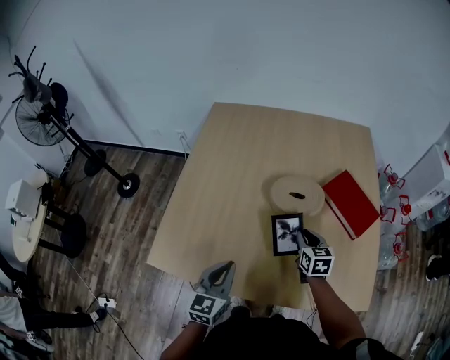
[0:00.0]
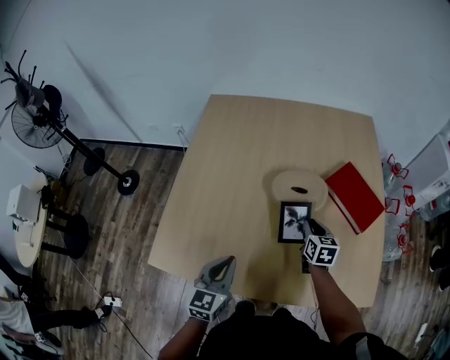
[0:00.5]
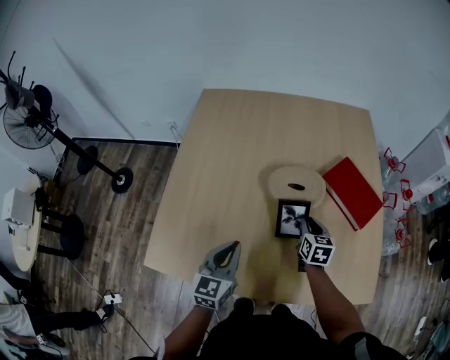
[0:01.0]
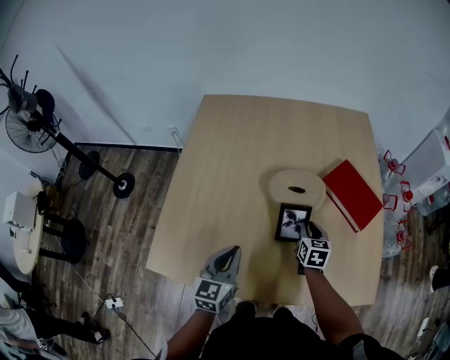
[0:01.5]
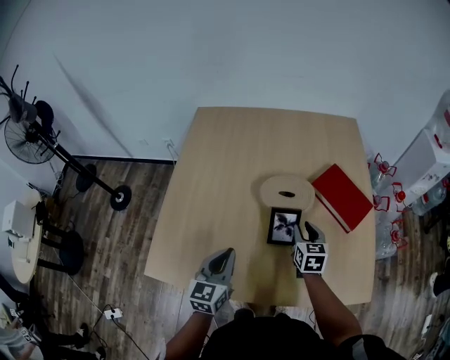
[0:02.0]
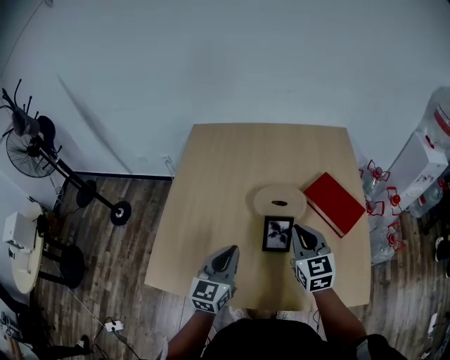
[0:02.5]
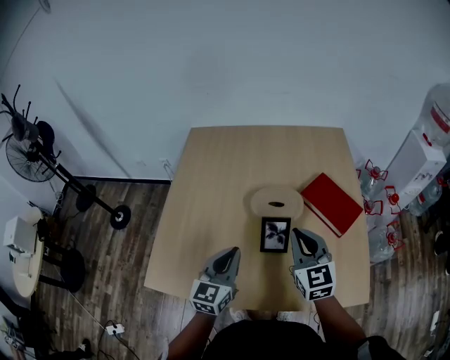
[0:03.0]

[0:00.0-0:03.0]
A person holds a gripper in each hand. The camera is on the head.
0:00.0 to 0:01.5: The right gripper ends up about 5 cm from where it was; the left gripper is displaced forward by some 5 cm.
0:01.5 to 0:03.0: The right gripper goes approximately 25 cm upward, and turns by roughly 30 degrees, while the left gripper moves upward and to the right, approximately 10 cm.

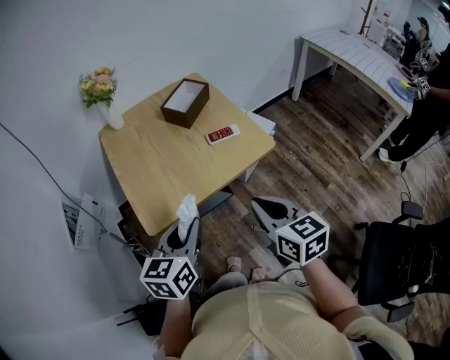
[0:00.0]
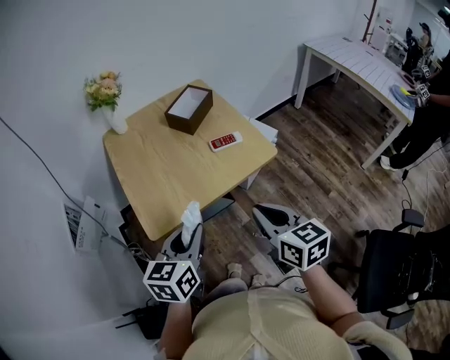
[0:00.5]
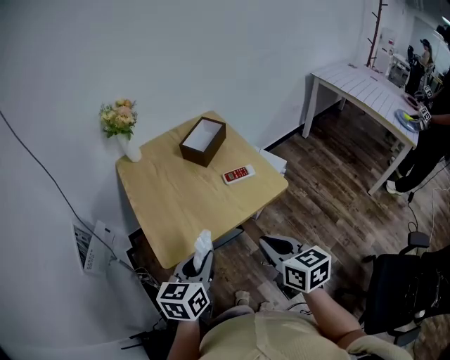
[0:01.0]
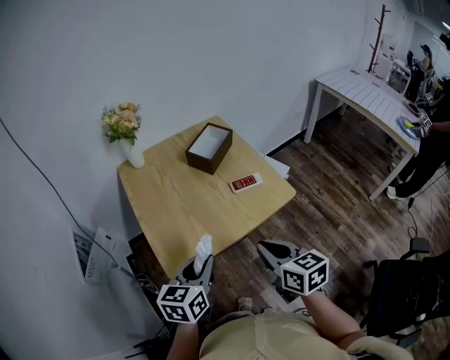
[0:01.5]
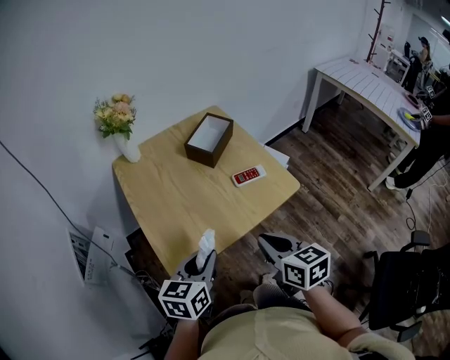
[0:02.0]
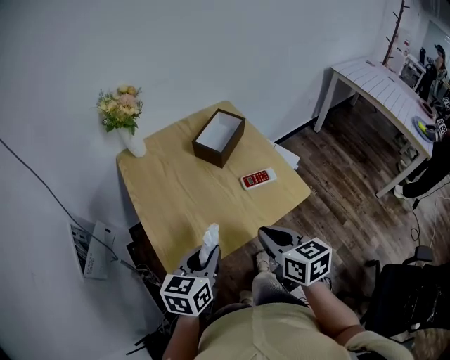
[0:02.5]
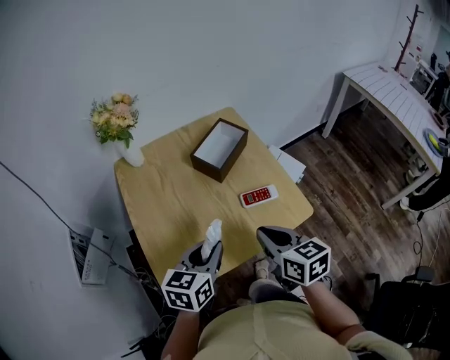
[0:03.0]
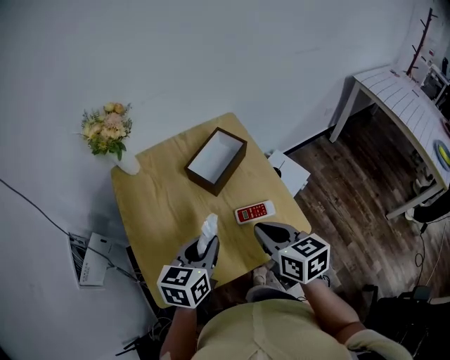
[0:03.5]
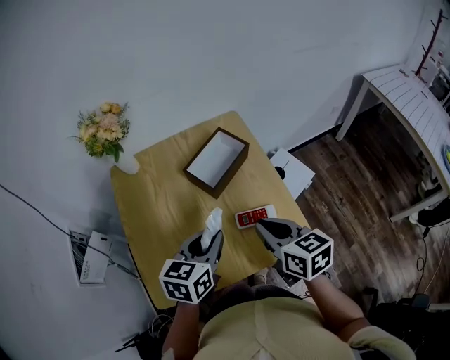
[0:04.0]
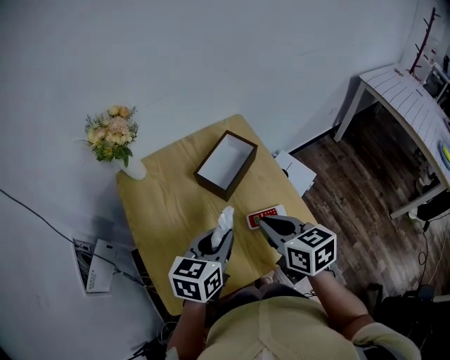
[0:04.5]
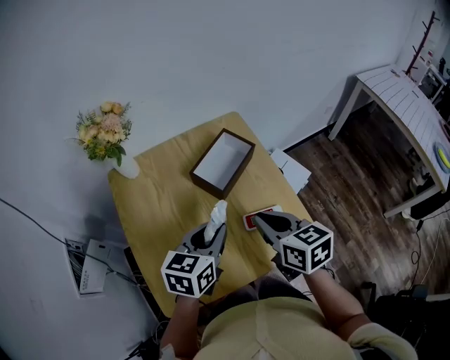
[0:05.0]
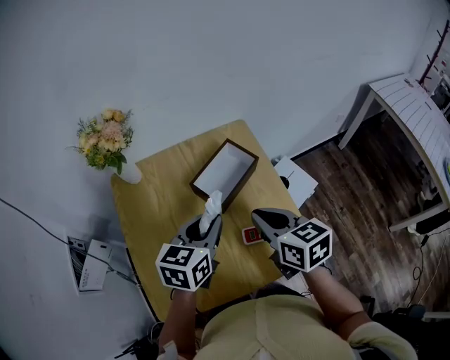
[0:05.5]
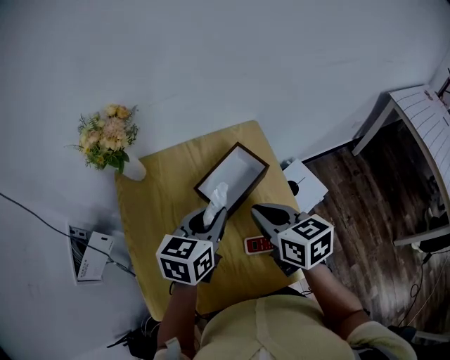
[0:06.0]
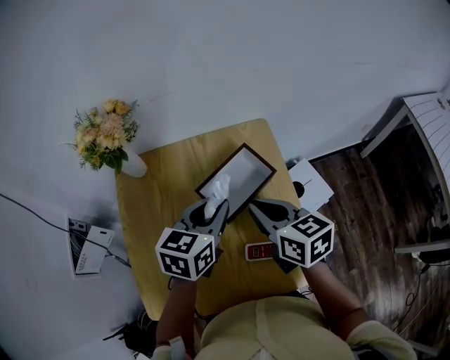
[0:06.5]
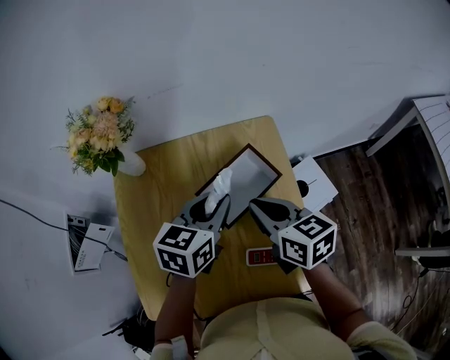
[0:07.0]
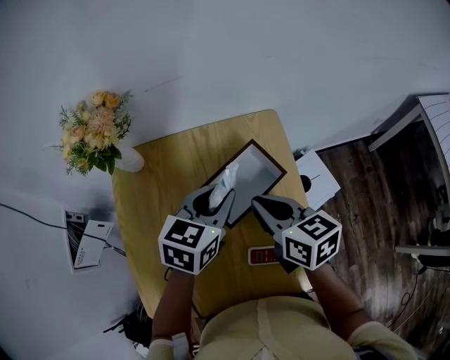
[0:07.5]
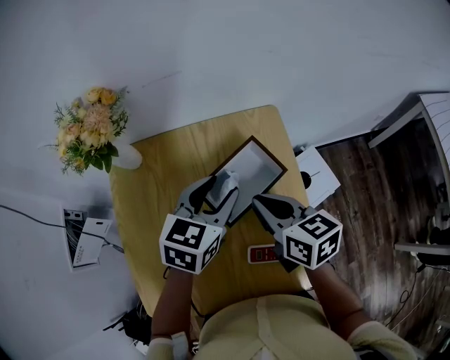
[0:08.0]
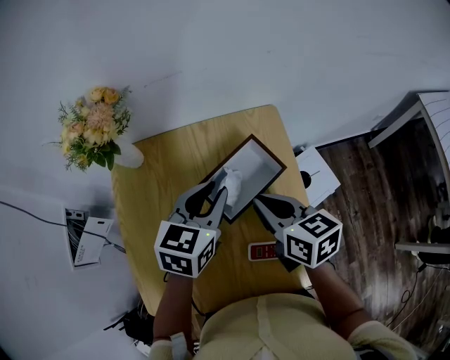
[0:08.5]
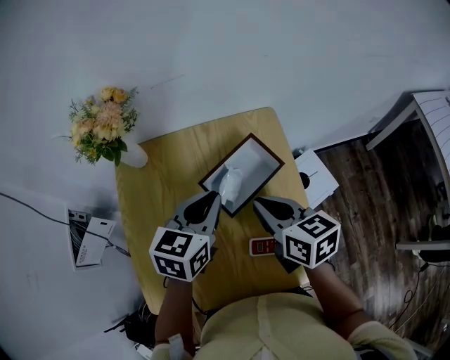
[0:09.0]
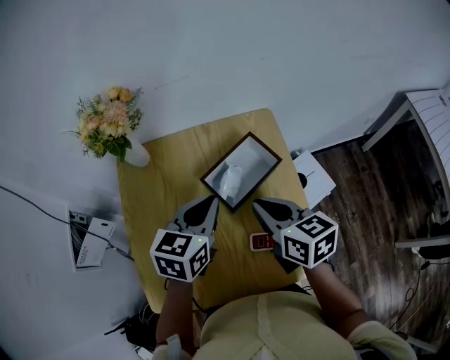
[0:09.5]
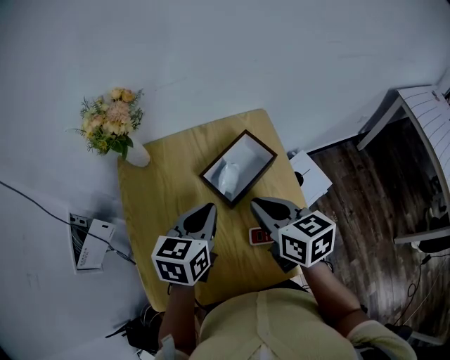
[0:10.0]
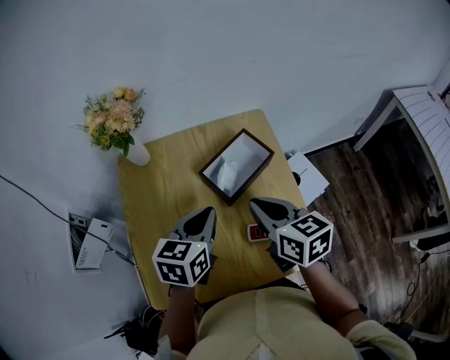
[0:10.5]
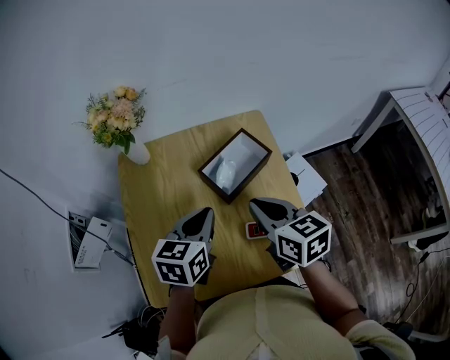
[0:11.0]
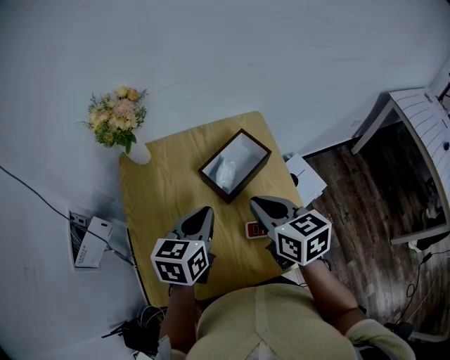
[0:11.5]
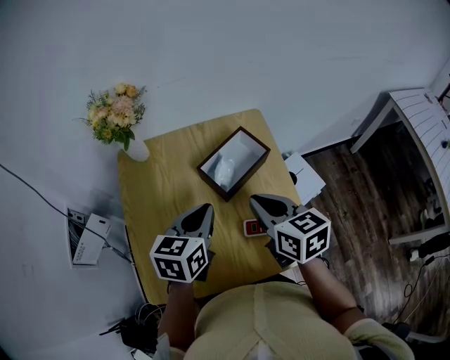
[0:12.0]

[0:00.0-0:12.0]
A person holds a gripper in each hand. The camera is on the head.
0:00.0 to 0:02.0: The left gripper goes about 5 cm forward; the right gripper moves forward and to the left, approximately 10 cm.
0:02.0 to 0:04.0: The right gripper heads forward, covering roughly 20 cm, while the left gripper heads forward and to the right, covering some 20 cm.
0:04.0 to 0:06.0: The grippers both shift forward by approximately 15 cm.
0:06.0 to 0:08.0: The two grippers go roughly 5 cm forward. The left gripper opens.
0:08.0 to 0:10.0: The right gripper heads backward, covering some 5 cm, while the left gripper travels backward and to the left by some 10 cm, and closes.
0:10.0 to 0:12.0: The grippers move only a little.

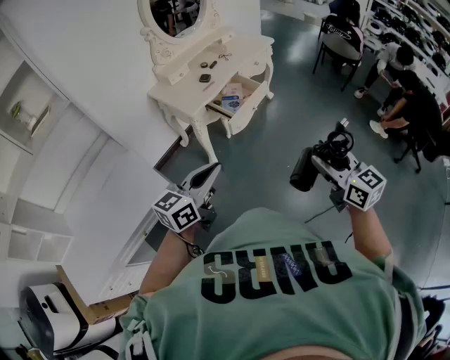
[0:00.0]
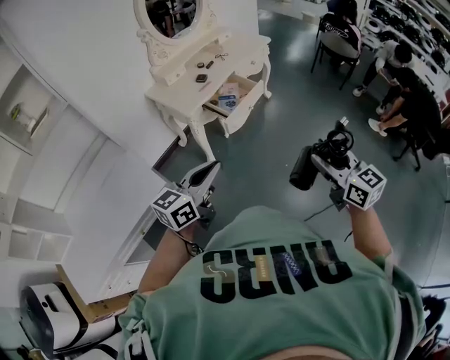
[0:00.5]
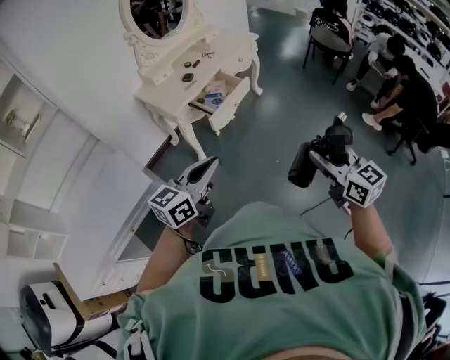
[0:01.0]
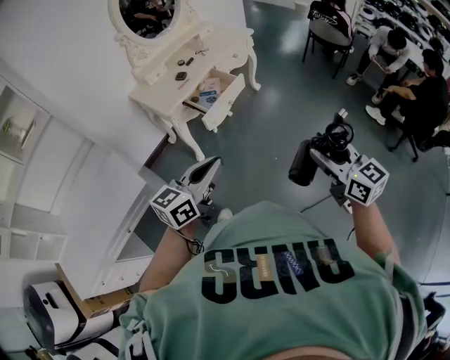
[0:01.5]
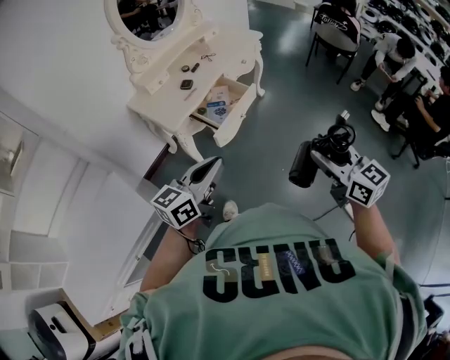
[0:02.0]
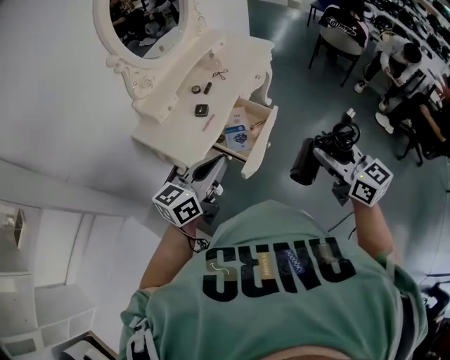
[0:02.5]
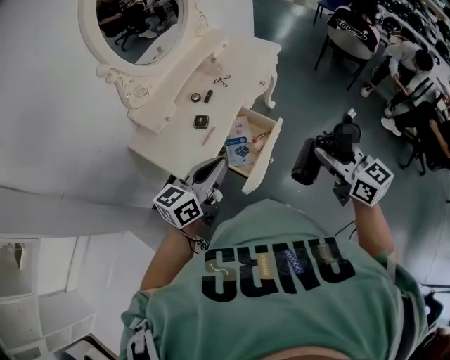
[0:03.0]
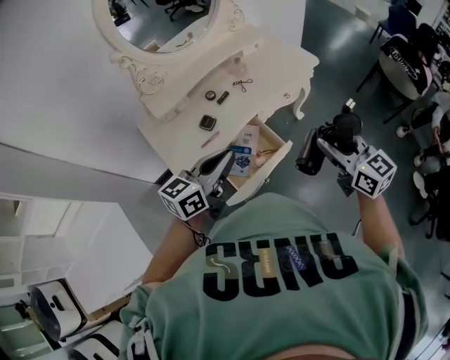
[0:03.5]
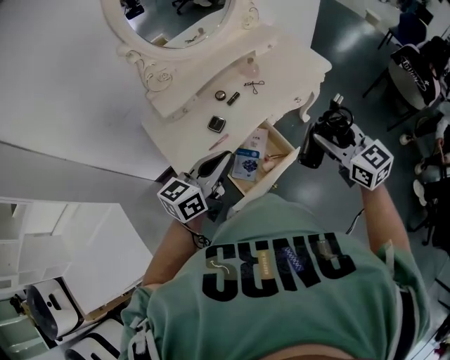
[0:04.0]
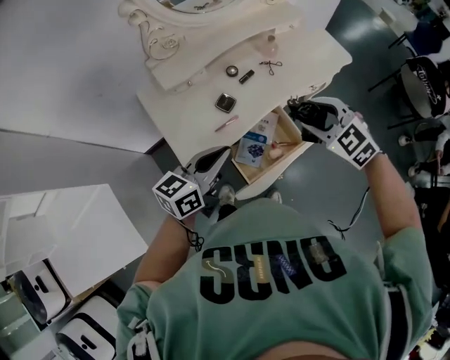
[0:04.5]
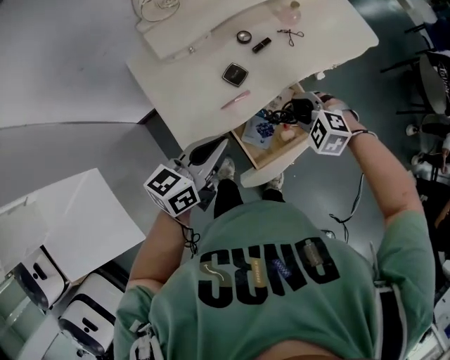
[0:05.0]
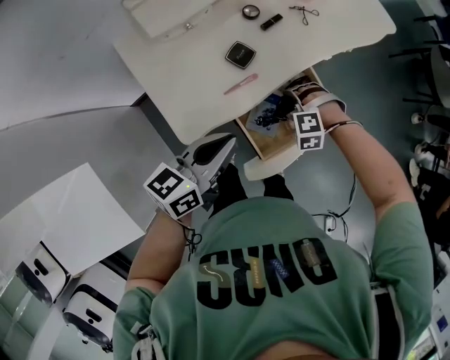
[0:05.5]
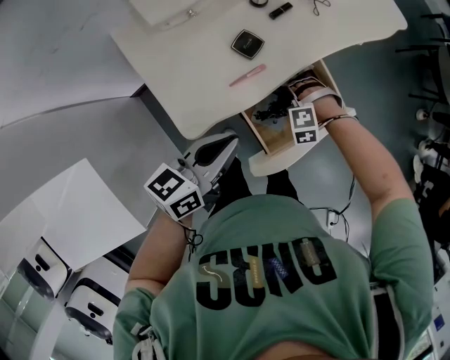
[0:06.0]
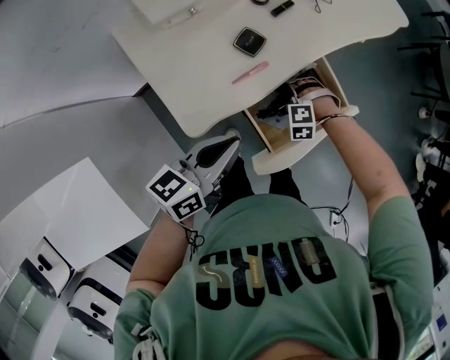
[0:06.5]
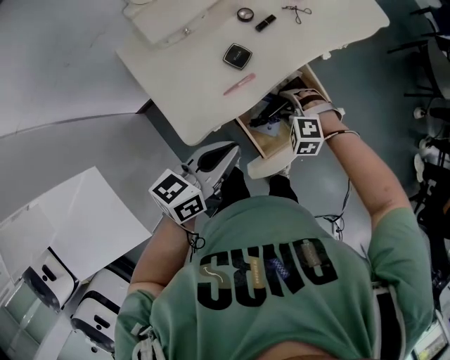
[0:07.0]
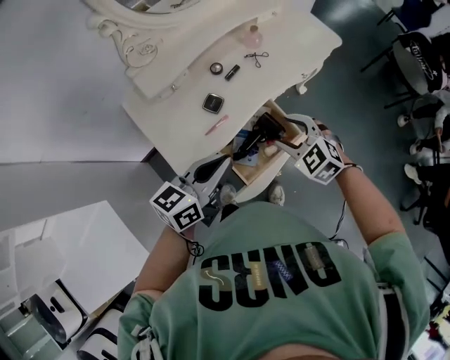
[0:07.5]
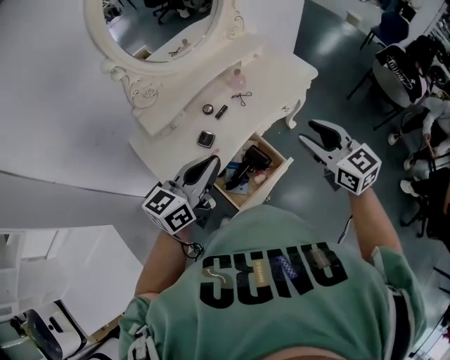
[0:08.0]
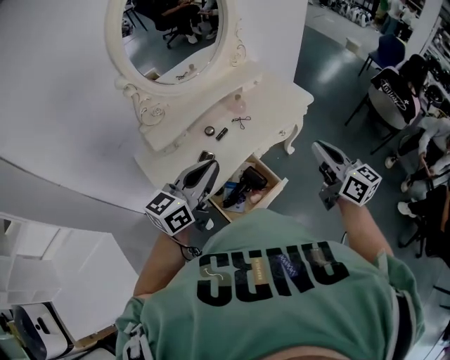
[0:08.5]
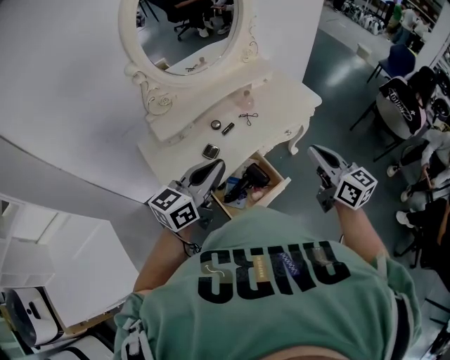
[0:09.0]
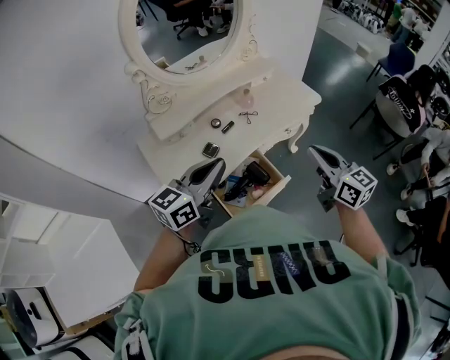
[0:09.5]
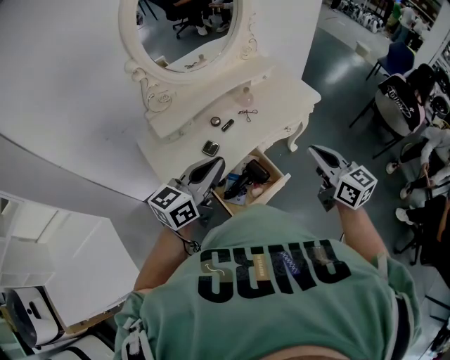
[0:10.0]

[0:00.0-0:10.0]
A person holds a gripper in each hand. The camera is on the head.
0:00.0 to 0:02.0: Both grippers travel together forward, approximately 15 cm.
0:02.0 to 0:04.0: The two grippers travel together, forward, about 50 cm. The right gripper changes its angle by approximately 20 degrees.
0:04.0 to 0:06.0: The right gripper travels downward by about 50 cm, and angles its fingers downward, by approximately 60 degrees. The left gripper is displaced downward by approximately 20 cm.
0:06.0 to 0:08.0: The right gripper moves upward, some 50 cm, and angles its fingers upward, by roughly 60 degrees. Meanwhile the left gripper shifts about 25 cm upward, and changes its angle by about 20 degrees.
0:08.0 to 0:10.0: The right gripper closes up.

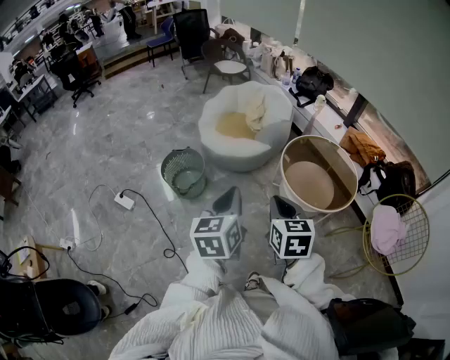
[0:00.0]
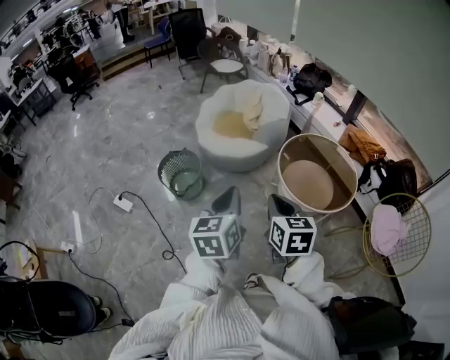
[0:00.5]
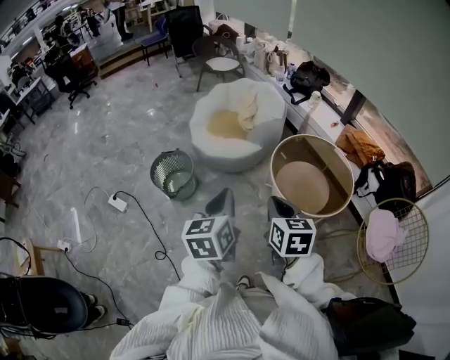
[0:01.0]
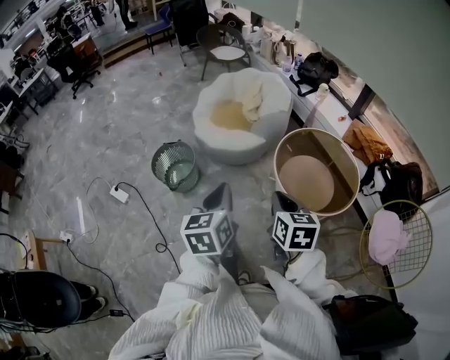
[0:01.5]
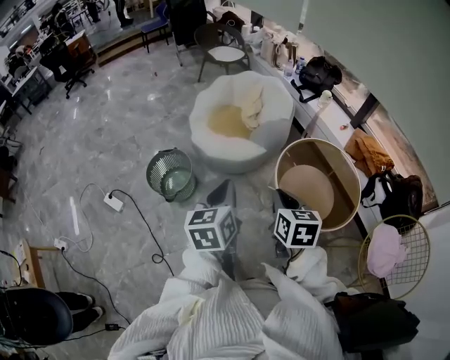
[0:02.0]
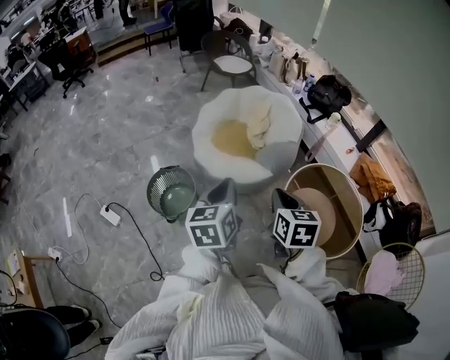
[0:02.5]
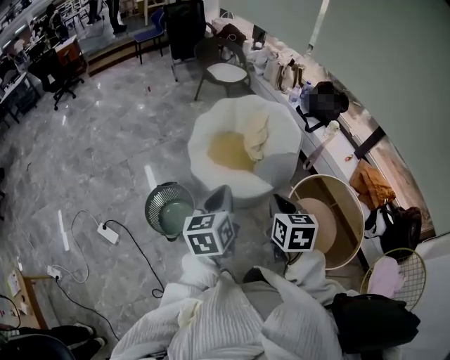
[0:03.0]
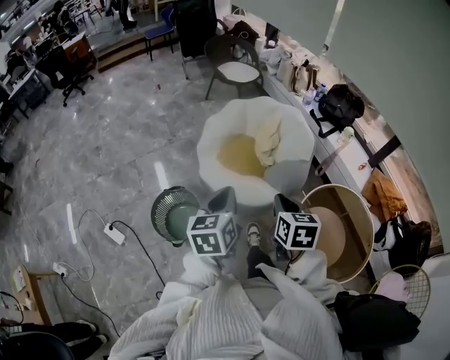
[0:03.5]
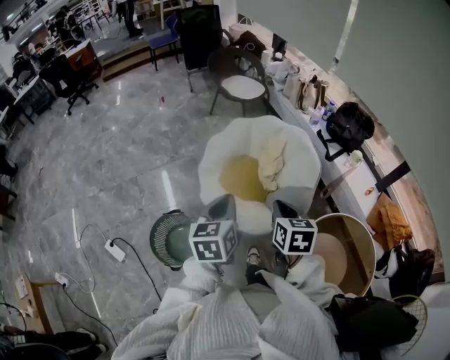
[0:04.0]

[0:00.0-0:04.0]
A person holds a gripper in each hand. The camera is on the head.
0:00.0 to 0:02.0: The right gripper heads forward and to the right, covering some 20 cm. The left gripper goes approximately 20 cm forward.
0:02.0 to 0:04.0: The grippers both shift forward by some 40 cm.
